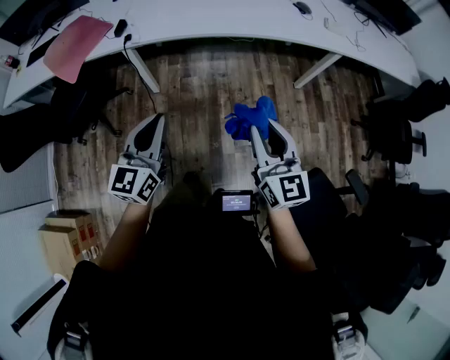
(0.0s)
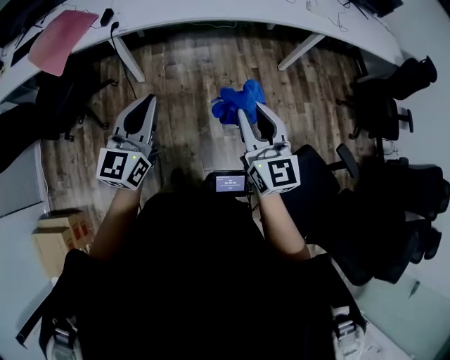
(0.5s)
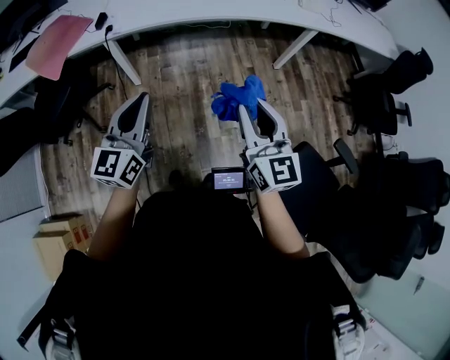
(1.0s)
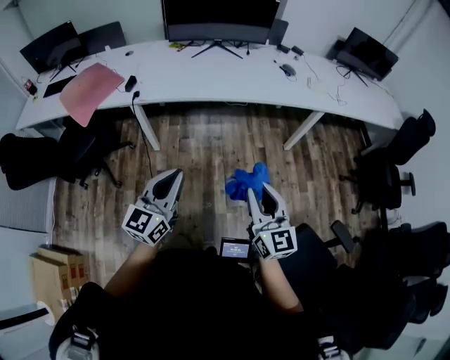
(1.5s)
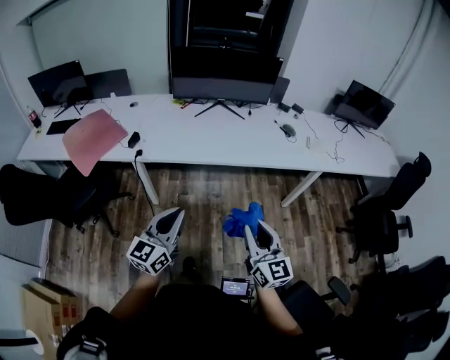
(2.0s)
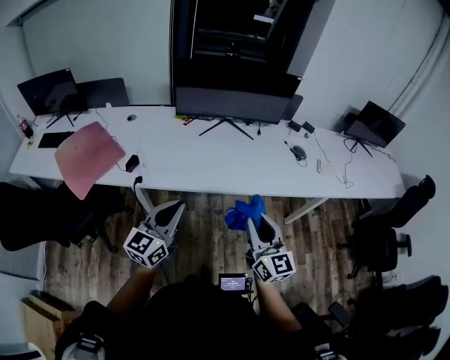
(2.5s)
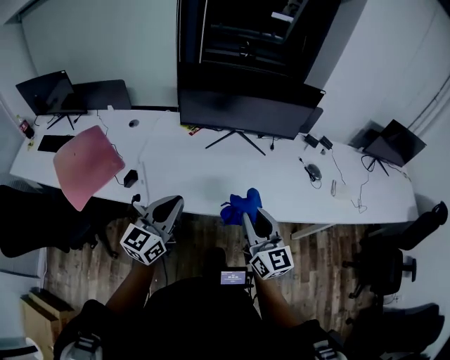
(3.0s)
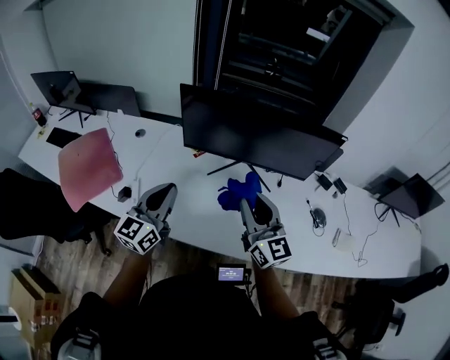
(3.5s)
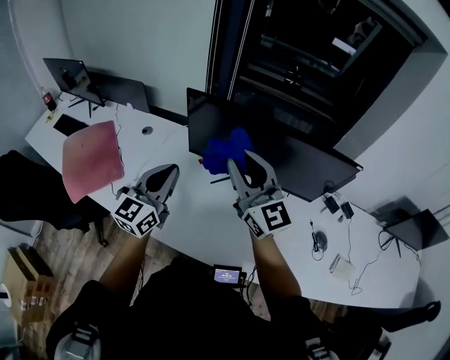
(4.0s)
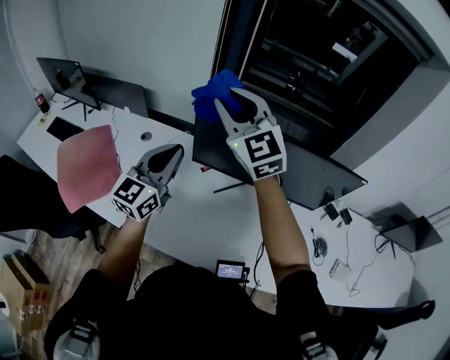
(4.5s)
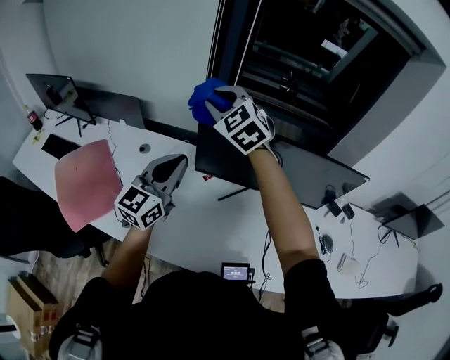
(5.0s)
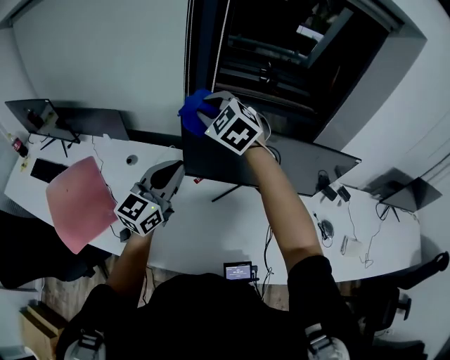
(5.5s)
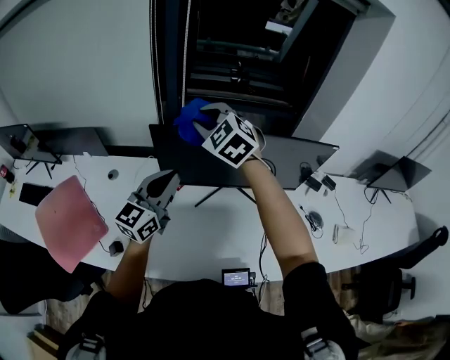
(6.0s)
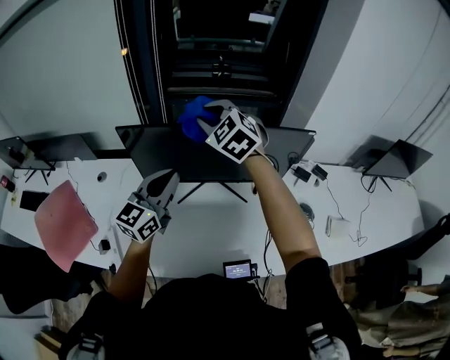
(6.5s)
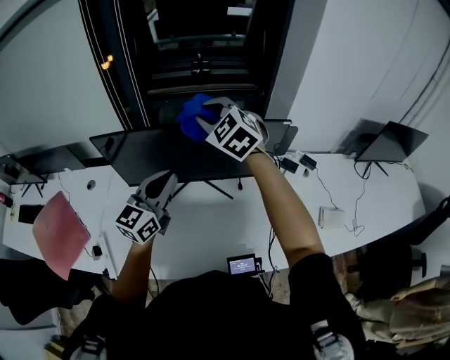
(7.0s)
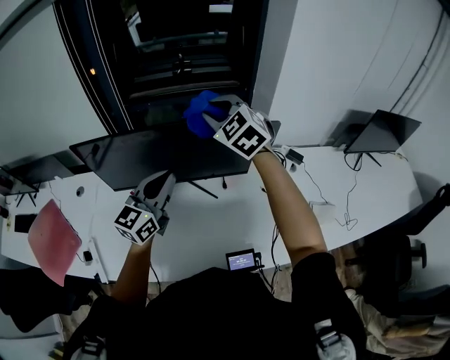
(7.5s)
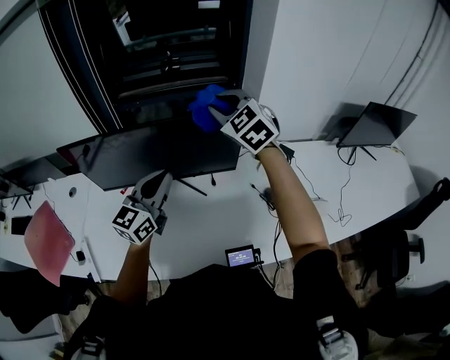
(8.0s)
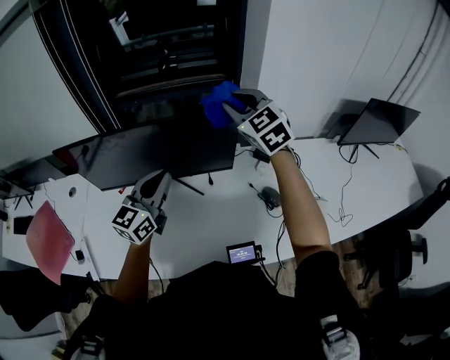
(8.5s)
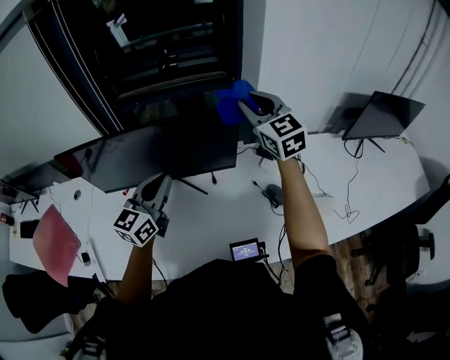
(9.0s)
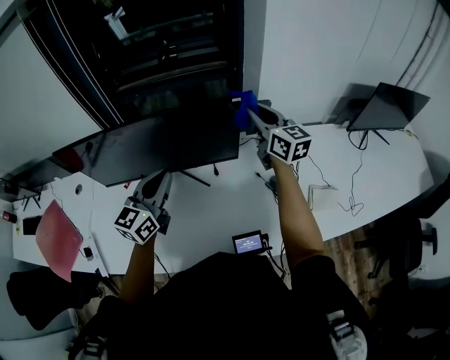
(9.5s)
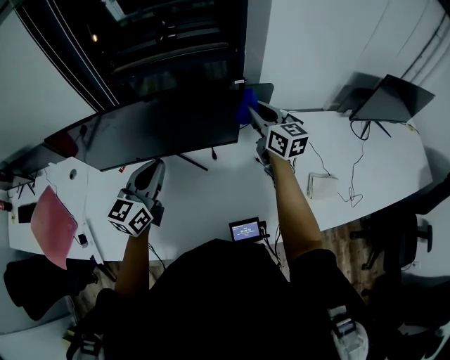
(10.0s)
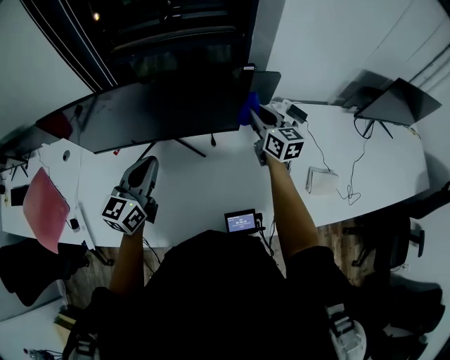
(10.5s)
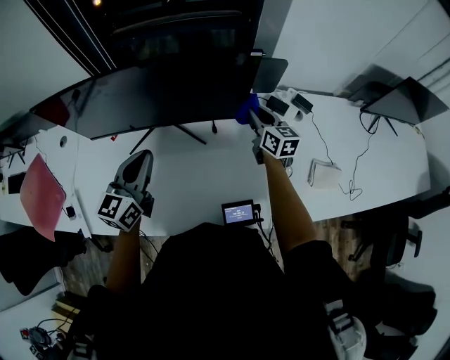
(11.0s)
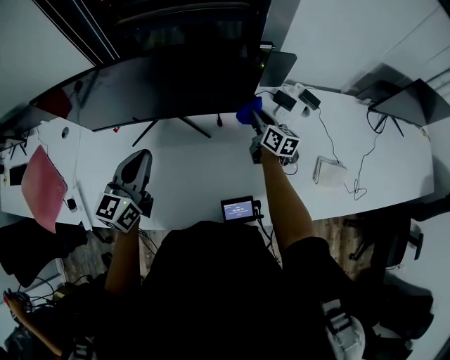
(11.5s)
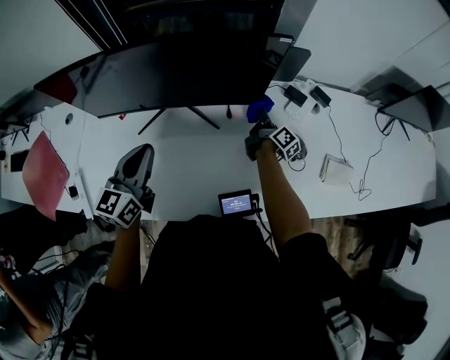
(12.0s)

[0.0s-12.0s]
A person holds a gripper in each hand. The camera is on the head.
0.0s to 2.0s: The two grippers go some 10 cm forward.
2.0s to 4.0s: The pair of grippers is taken some 60 cm. The left gripper swivels roughly 20 degrees, while the right gripper rotates about 40 degrees.
4.0s to 6.0s: The right gripper shifts some 20 cm forward, and tips its fingers downward by some 40 degrees. Meanwhile the left gripper moves forward, some 10 cm, and rotates about 20 degrees.
6.0s to 8.0s: The grippers both shift to the right by approximately 35 cm.
8.0s to 10.0s: The left gripper travels downward by about 5 cm. The right gripper moves downward and to the right, approximately 20 cm, and twists approximately 50 degrees clockwise, seen from behind.
10.0s to 12.0s: The right gripper travels downward by approximately 25 cm, and twists some 60 degrees clockwise, seen from behind; the left gripper goes roughly 10 cm to the left and downward.

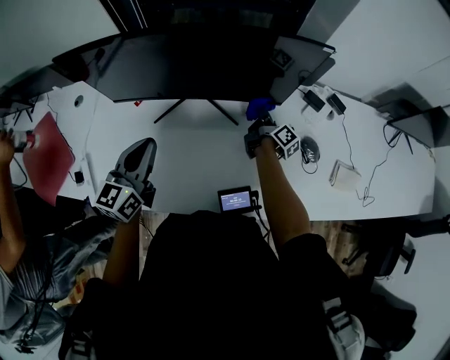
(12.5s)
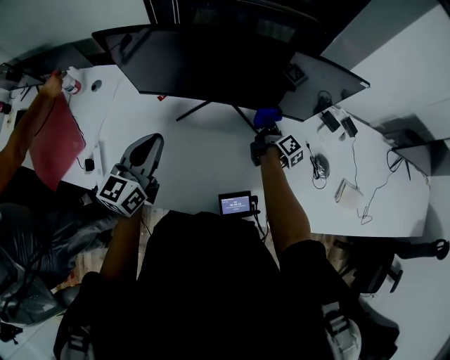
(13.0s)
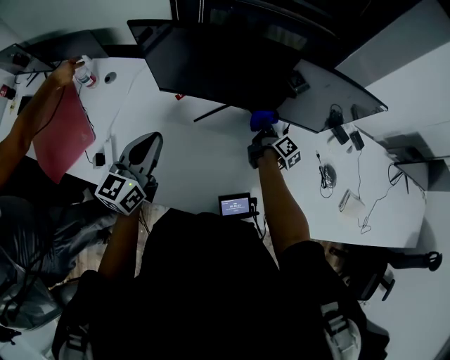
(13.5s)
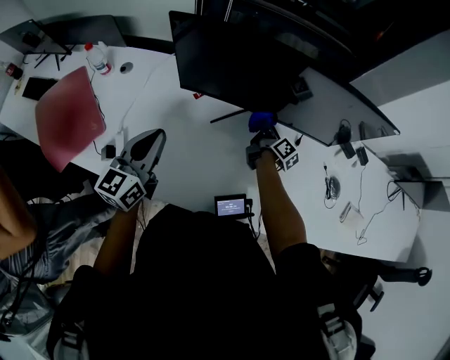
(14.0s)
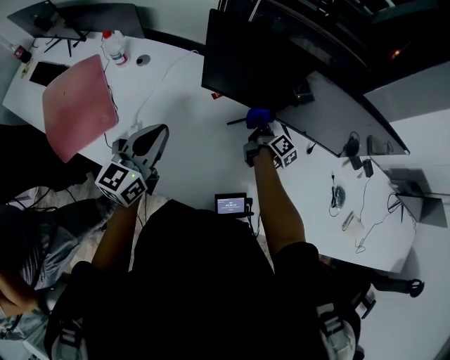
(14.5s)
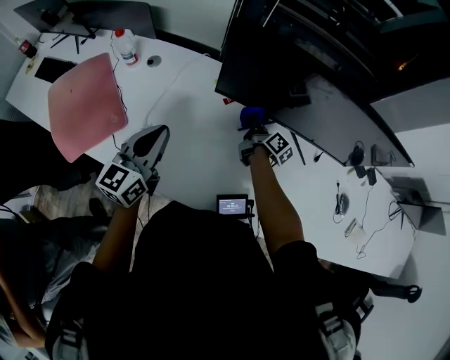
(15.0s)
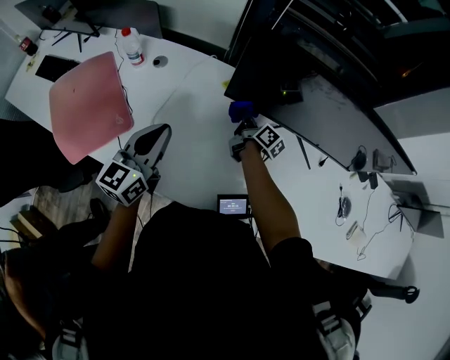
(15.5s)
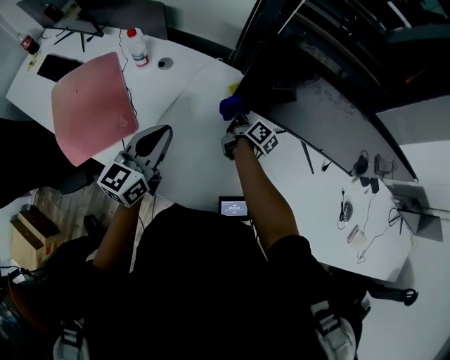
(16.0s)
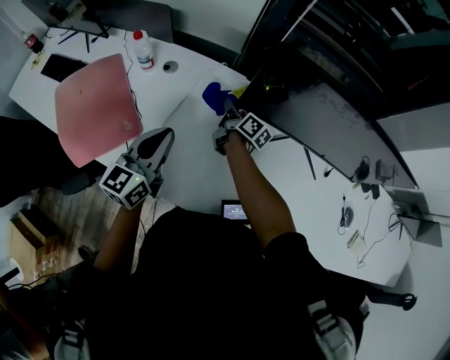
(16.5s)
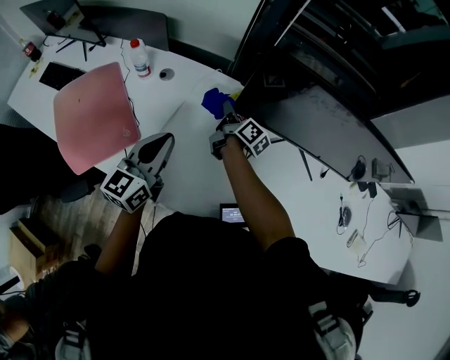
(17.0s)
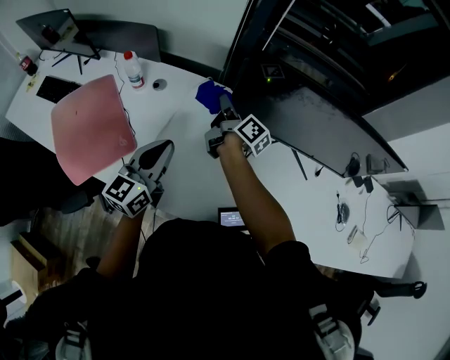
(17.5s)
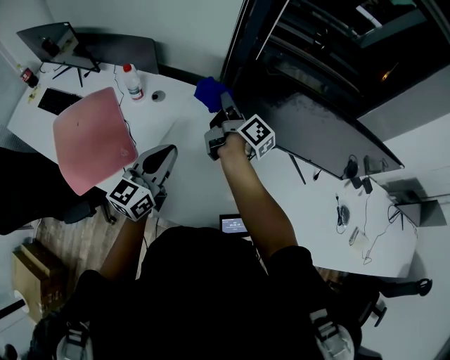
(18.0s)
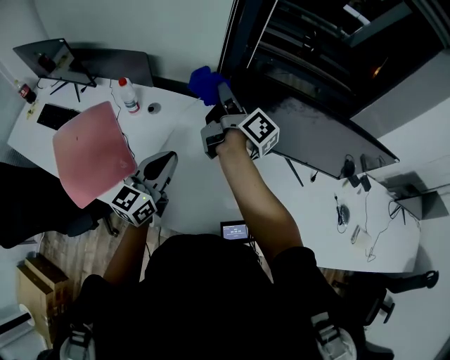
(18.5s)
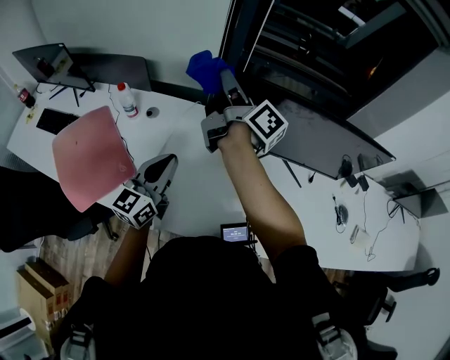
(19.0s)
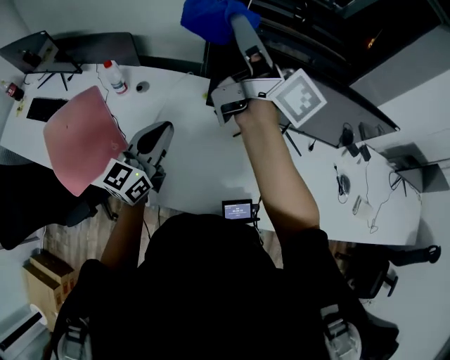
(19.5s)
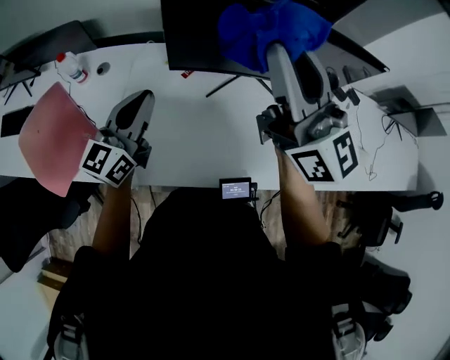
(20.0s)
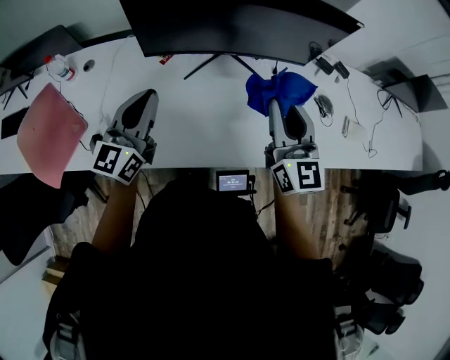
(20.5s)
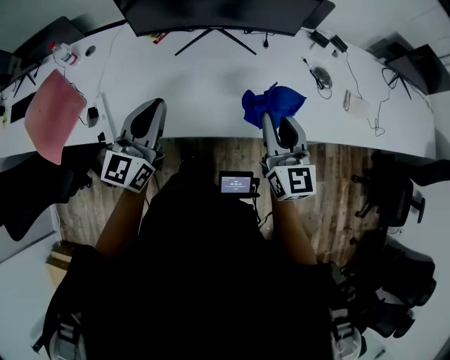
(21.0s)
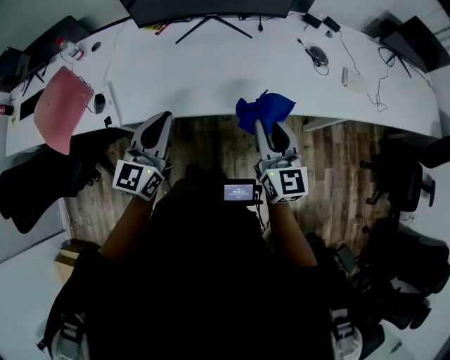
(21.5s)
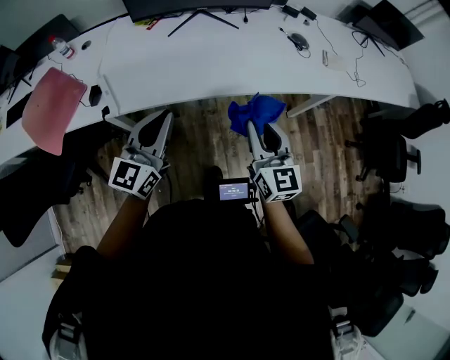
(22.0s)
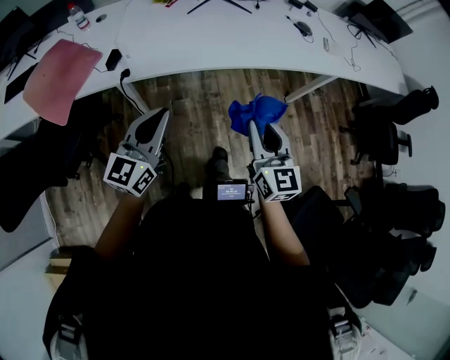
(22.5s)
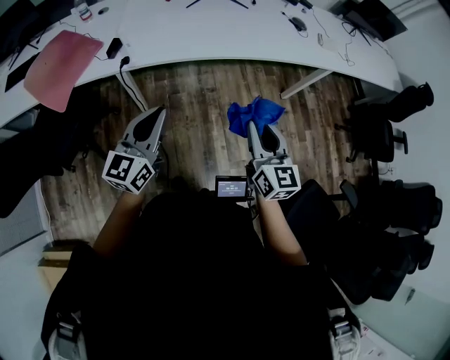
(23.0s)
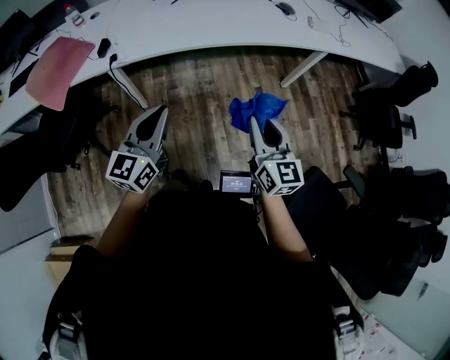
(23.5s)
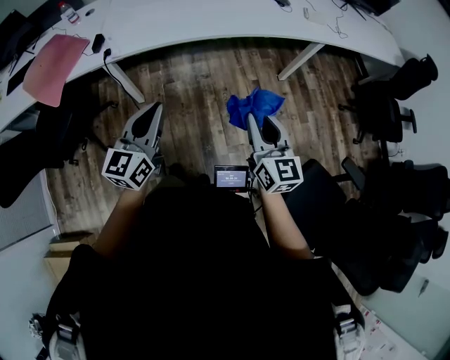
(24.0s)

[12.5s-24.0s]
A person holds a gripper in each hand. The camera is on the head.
12.5s to 14.5s: The two grippers go approximately 30 cm to the left. The right gripper rotates some 20 degrees.
14.5s to 16.5s: The left gripper shifts roughly 10 cm to the left, while the right gripper is displaced to the left by some 25 cm.
16.5s to 18.5s: The left gripper ends up roughly 5 cm from where it was. Meanwhile the right gripper moves upward, approximately 25 cm, and swivels about 30 degrees.
18.5s to 20.0s: The left gripper moves to the right, roughly 5 cm. The right gripper shifts about 30 cm backward, to the right and upward, and twists roughly 70 degrees counterclockwise, seen from behind.
20.0s to 22.0s: The pair of grippers is taken backward and to the right, some 40 cm. The right gripper is displaced downward by approximately 25 cm, and rotates about 40 degrees.
22.0s to 24.0s: The grippers both shift backward by some 25 cm.

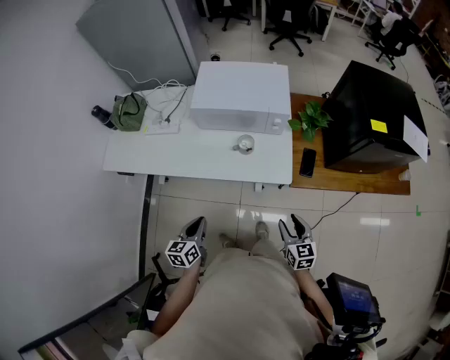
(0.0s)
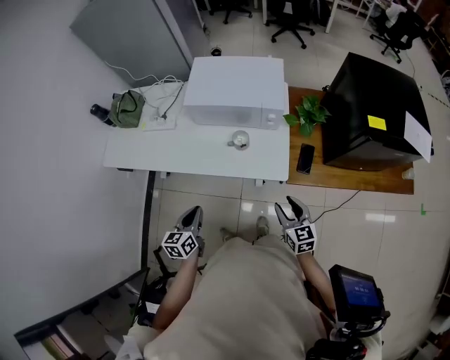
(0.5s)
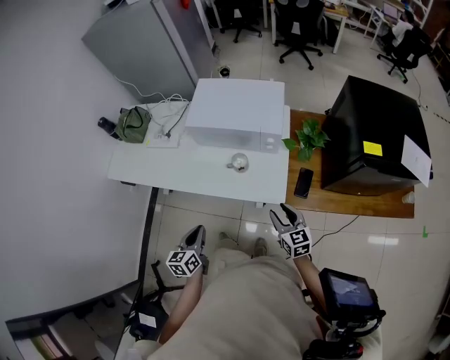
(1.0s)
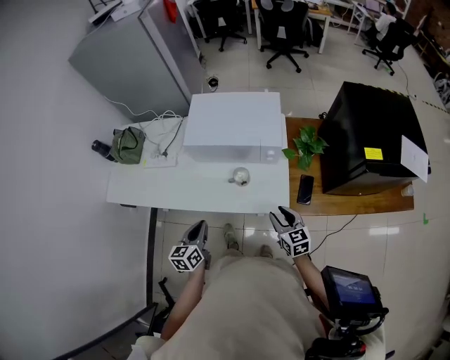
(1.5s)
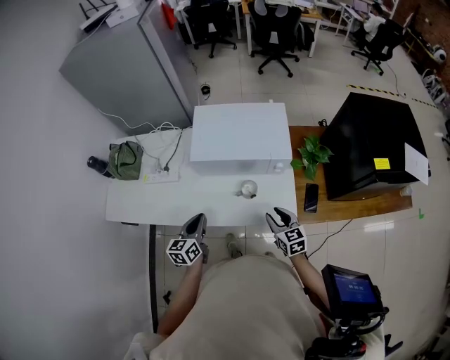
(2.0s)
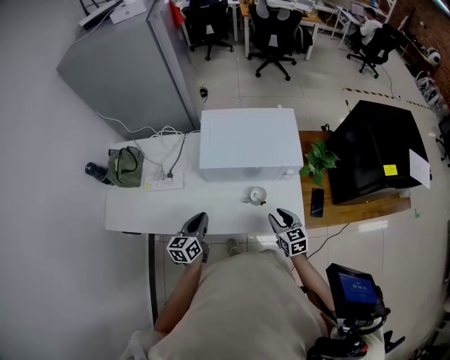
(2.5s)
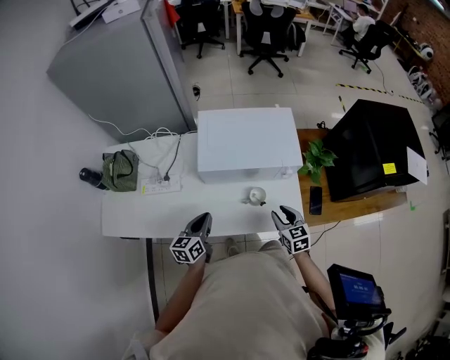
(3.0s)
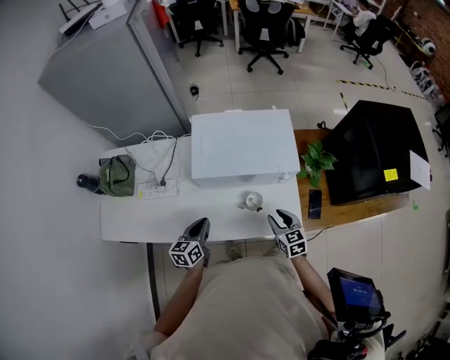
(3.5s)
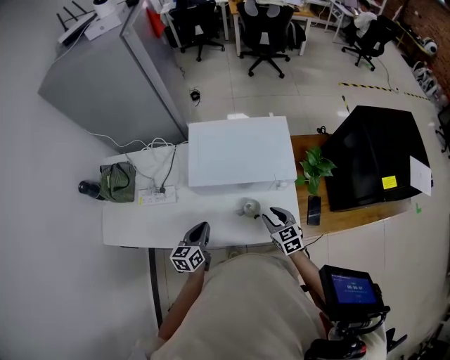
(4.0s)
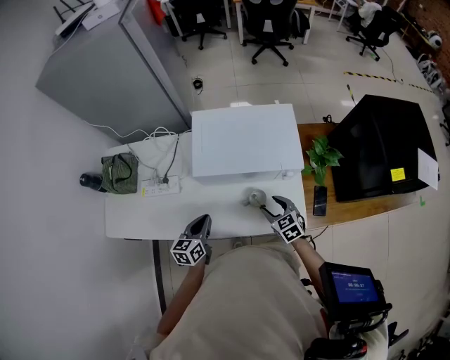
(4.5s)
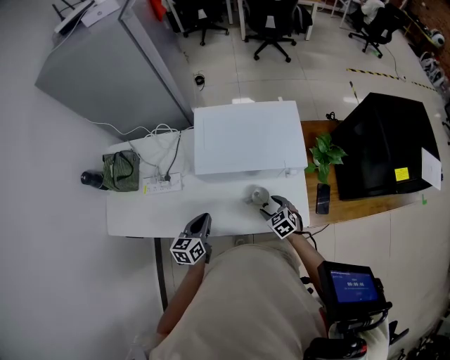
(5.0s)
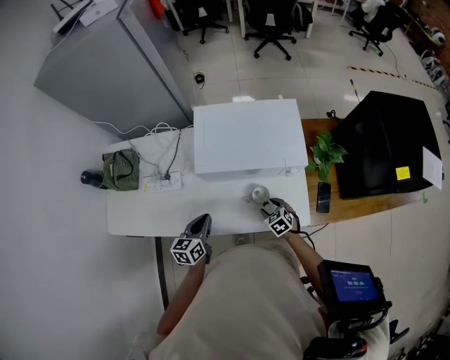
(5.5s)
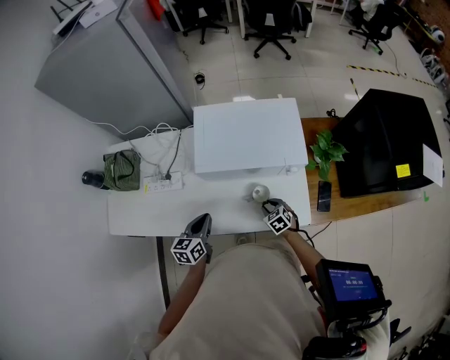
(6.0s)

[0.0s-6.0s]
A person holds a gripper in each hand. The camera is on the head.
0.0s to 2.0s: The two grippers go roughly 25 cm forward.
2.0s to 4.0s: The grippers both shift forward by some 10 cm.
4.0s to 6.0s: The right gripper heads downward, covering approximately 15 cm, rotates about 20 degrees, and opens and closes again.
